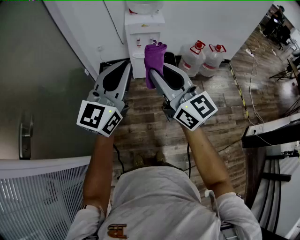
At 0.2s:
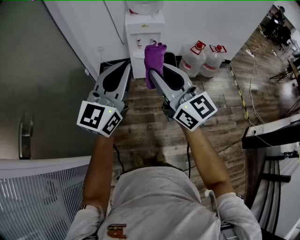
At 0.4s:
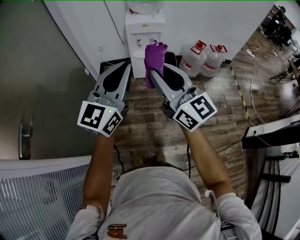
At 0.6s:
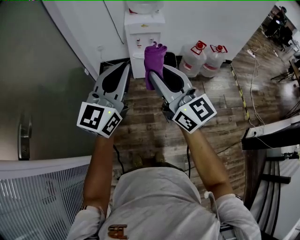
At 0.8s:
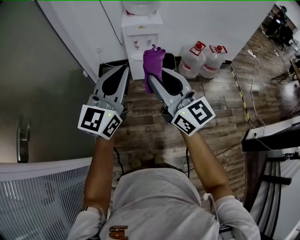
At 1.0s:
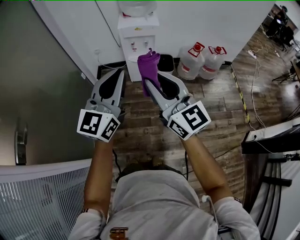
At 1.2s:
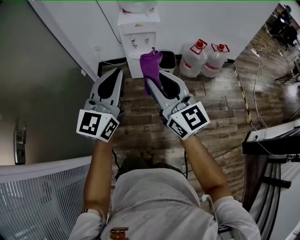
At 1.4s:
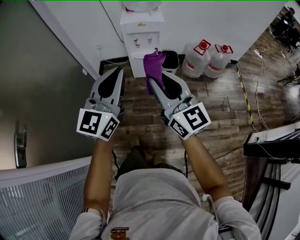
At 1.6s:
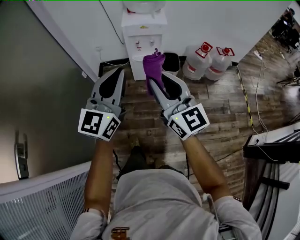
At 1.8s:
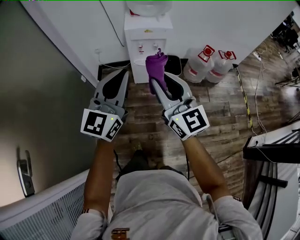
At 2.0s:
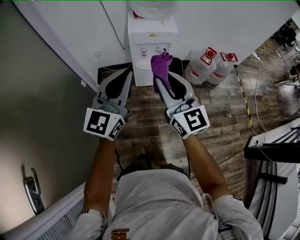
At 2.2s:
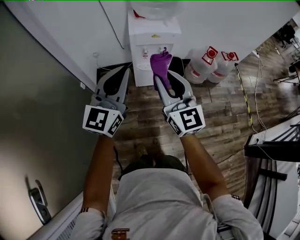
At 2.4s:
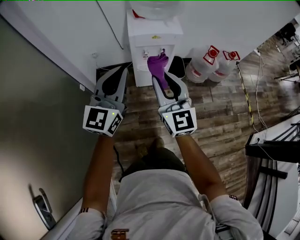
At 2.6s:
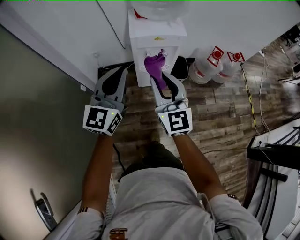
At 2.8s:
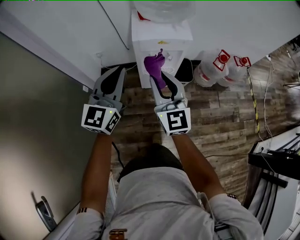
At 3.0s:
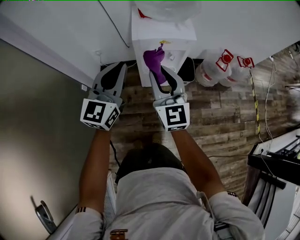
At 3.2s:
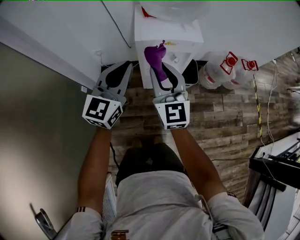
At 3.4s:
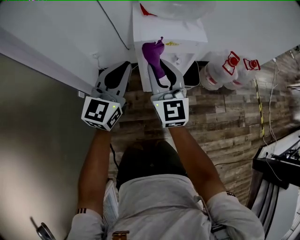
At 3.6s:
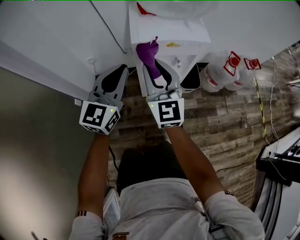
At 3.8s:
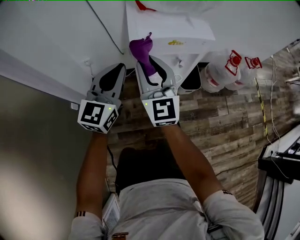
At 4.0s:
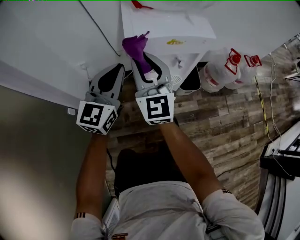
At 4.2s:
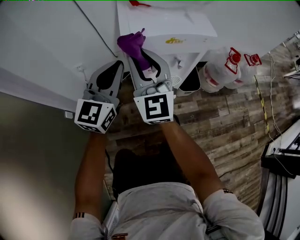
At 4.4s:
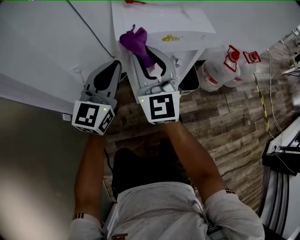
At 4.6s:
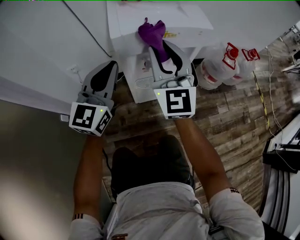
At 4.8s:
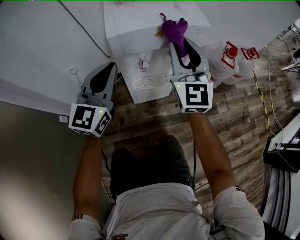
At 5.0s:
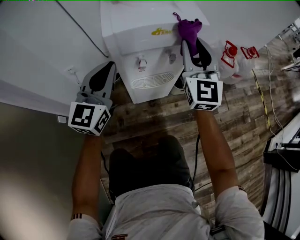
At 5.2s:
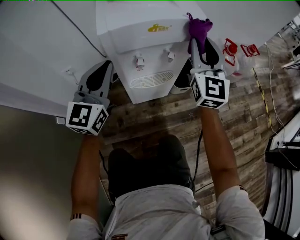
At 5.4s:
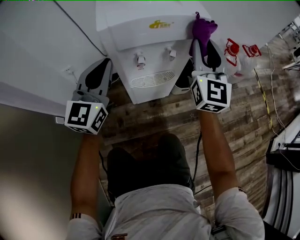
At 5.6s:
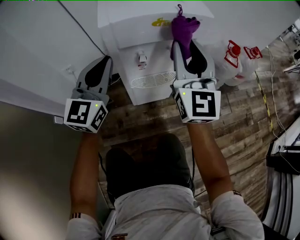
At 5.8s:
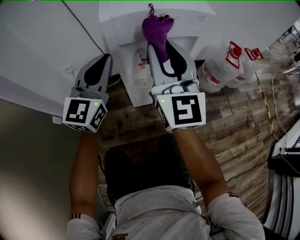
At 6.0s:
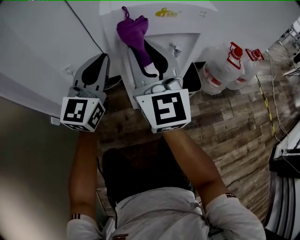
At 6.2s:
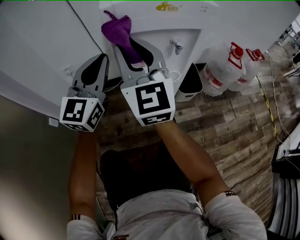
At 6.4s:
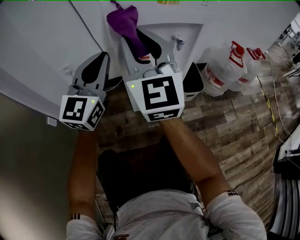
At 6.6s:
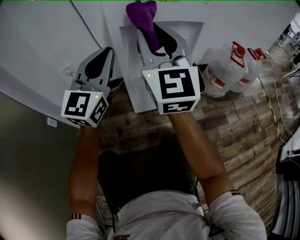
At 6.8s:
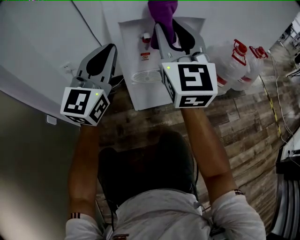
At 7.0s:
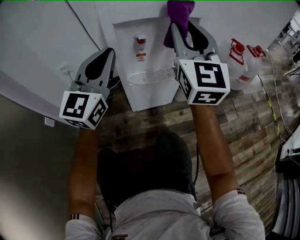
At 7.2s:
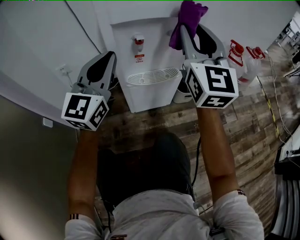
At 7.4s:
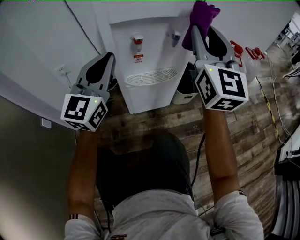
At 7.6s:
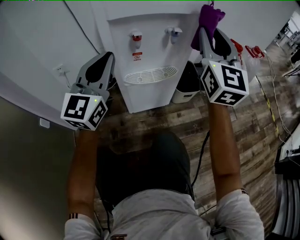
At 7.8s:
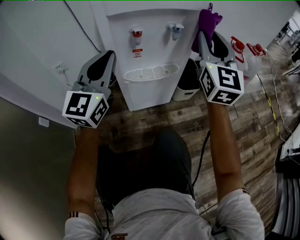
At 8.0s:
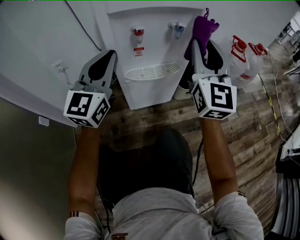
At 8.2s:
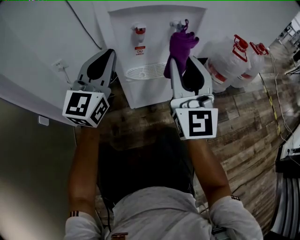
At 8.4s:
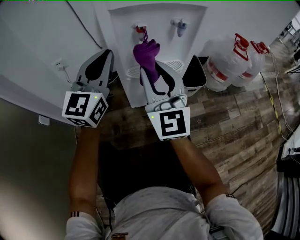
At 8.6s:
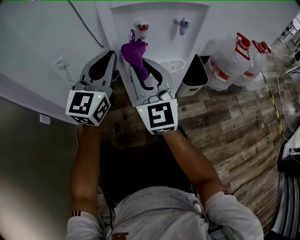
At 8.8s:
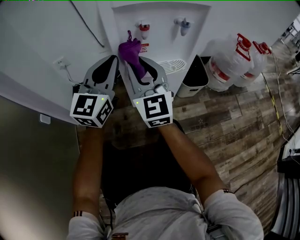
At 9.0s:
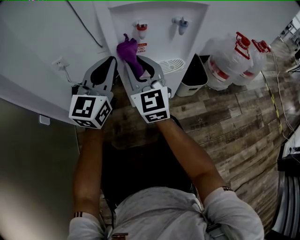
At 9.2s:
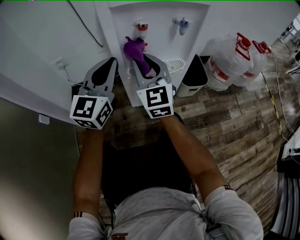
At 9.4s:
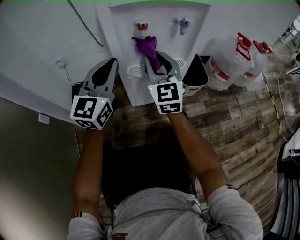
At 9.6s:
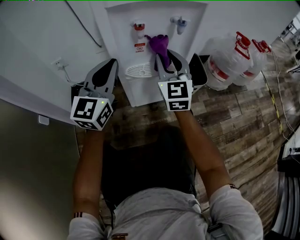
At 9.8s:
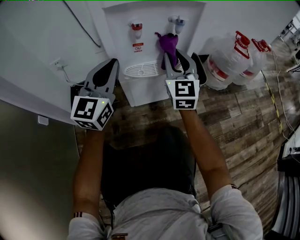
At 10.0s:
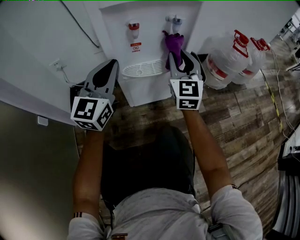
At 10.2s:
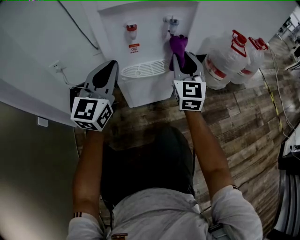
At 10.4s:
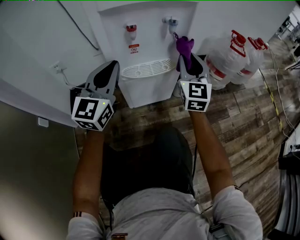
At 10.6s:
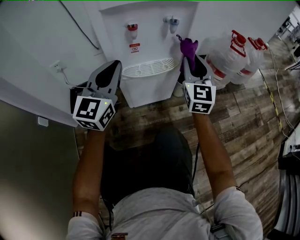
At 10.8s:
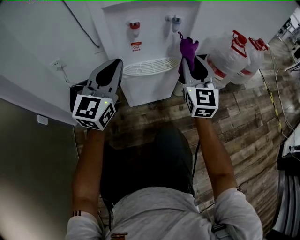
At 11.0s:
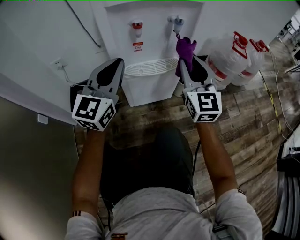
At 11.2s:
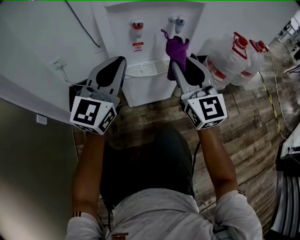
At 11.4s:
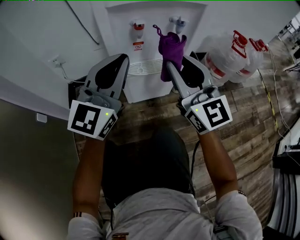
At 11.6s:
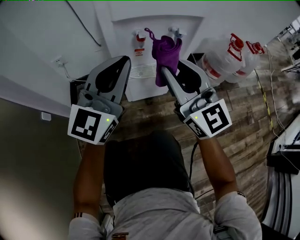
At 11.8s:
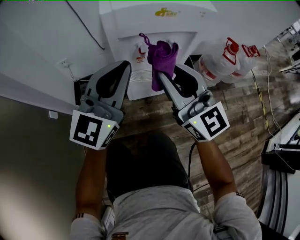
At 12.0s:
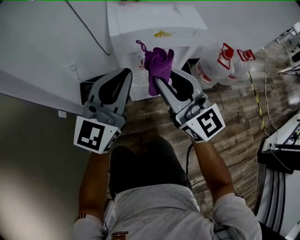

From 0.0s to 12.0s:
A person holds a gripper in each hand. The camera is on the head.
From 0.0s to 1.6s: Both grippers travel together forward and downward, approximately 15 cm.
From 1.6s to 3.0s: The two grippers go some 30 cm forward.
From 3.0s to 4.4s: The left gripper heads downward and forward, covering approximately 25 cm, while the right gripper goes some 20 cm forward and downward.
From 4.4s to 6.0s: The left gripper shifts about 5 cm downward; the right gripper moves some 20 cm to the right and comes back.
From 6.0s to 7.6s: The left gripper goes approximately 5 cm downward; the right gripper is displaced to the right by roughly 20 cm, and changes its angle by some 20 degrees.
From 7.6s to 9.0s: The left gripper travels downward by some 5 cm. Meanwhile the right gripper shifts approximately 30 cm to the left and downward, and turns by about 20 degrees.
From 9.0s to 10.4s: The right gripper goes approximately 20 cm to the right, and rotates roughly 20 degrees.
From 10.4s to 12.0s: The left gripper shifts some 25 cm upward, while the right gripper moves upward, backward and to the left, about 35 cm, and rotates about 40 degrees.

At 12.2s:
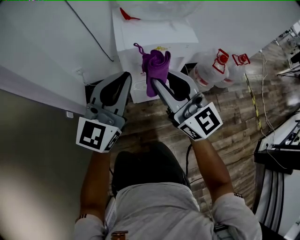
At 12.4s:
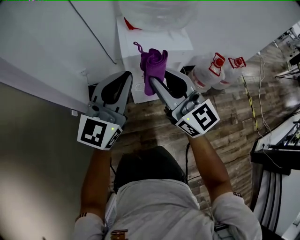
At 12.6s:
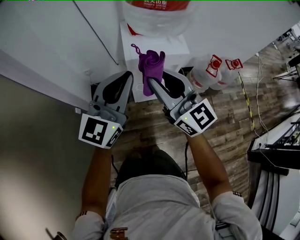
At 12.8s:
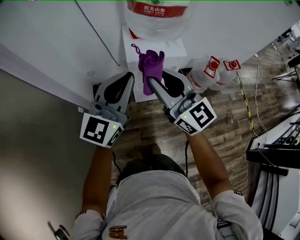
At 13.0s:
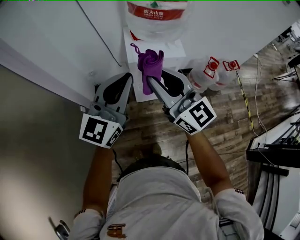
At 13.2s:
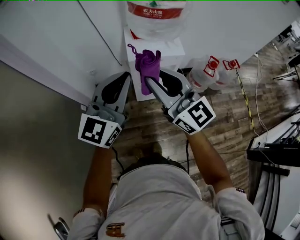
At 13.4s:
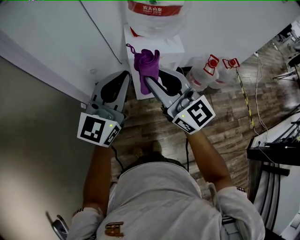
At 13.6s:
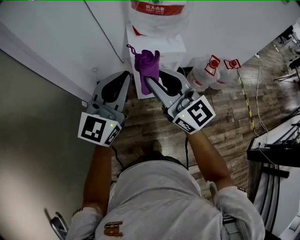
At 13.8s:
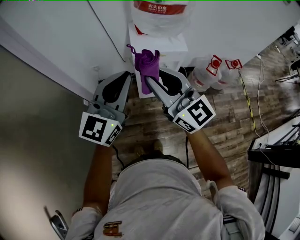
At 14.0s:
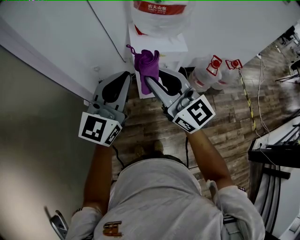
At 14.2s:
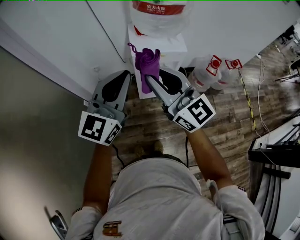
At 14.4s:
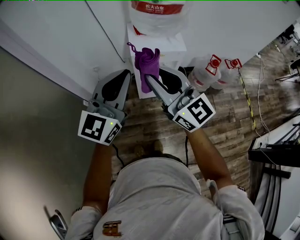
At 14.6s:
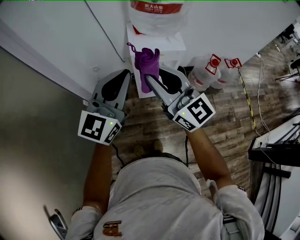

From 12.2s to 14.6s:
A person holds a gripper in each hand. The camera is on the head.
From 12.2s to 13.4s: The two grippers go roughly 20 cm upward and backward.
From 13.4s to 14.6s: Both grippers stay put.

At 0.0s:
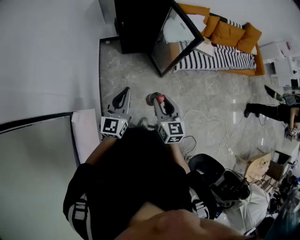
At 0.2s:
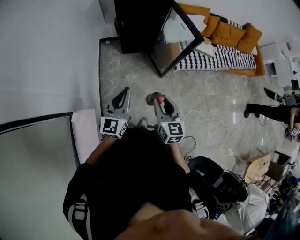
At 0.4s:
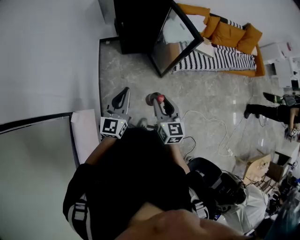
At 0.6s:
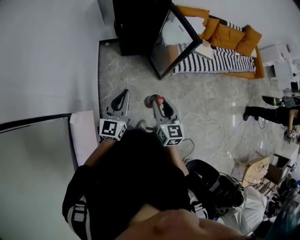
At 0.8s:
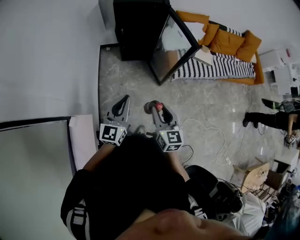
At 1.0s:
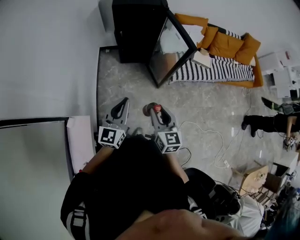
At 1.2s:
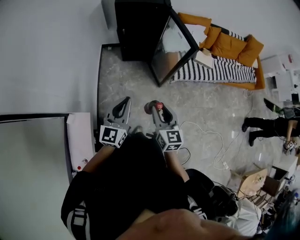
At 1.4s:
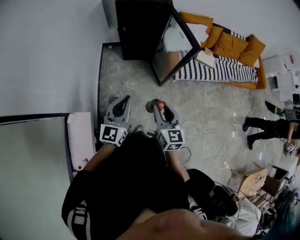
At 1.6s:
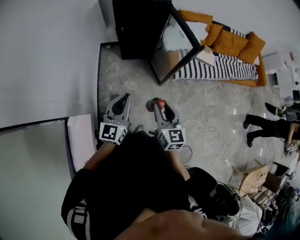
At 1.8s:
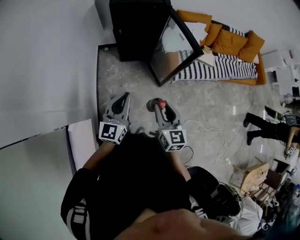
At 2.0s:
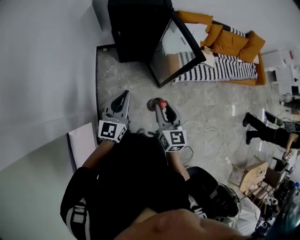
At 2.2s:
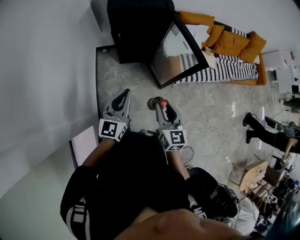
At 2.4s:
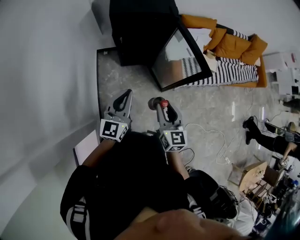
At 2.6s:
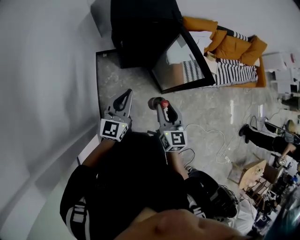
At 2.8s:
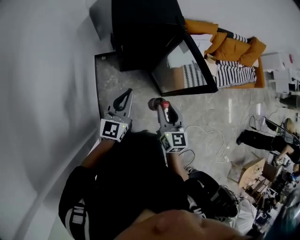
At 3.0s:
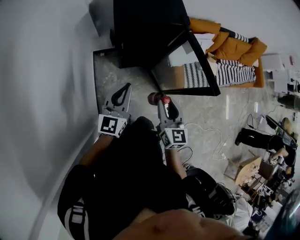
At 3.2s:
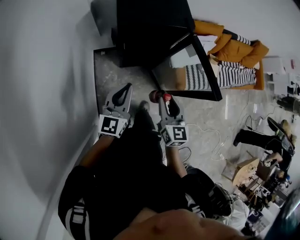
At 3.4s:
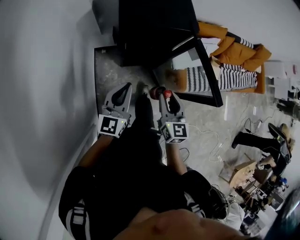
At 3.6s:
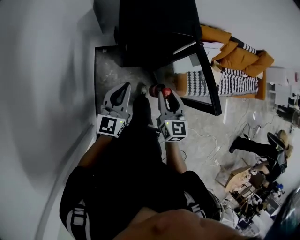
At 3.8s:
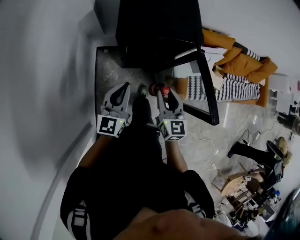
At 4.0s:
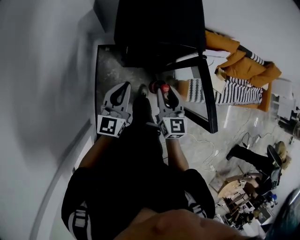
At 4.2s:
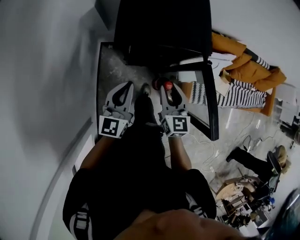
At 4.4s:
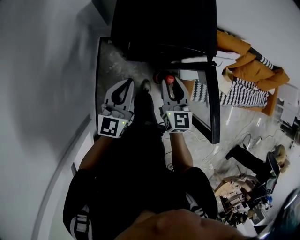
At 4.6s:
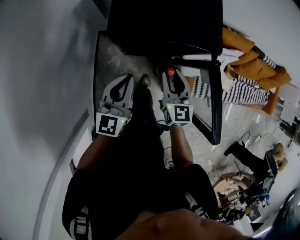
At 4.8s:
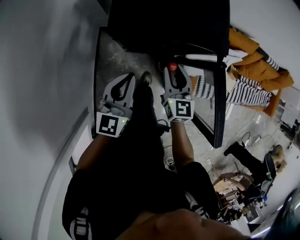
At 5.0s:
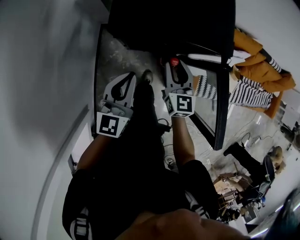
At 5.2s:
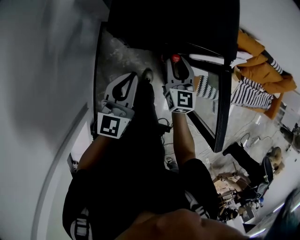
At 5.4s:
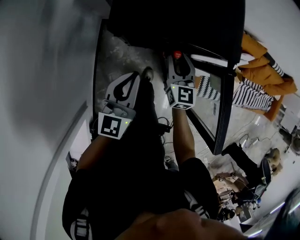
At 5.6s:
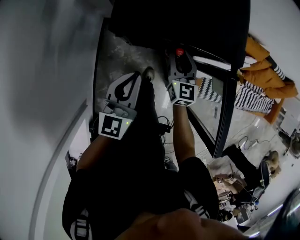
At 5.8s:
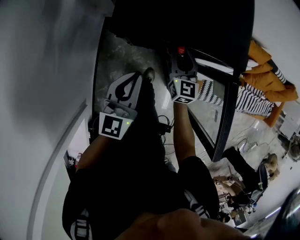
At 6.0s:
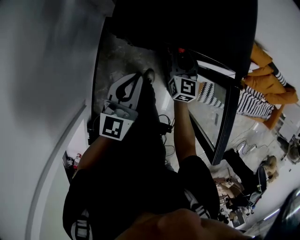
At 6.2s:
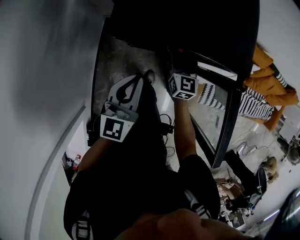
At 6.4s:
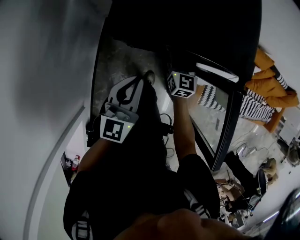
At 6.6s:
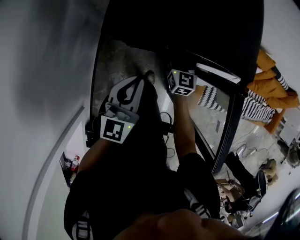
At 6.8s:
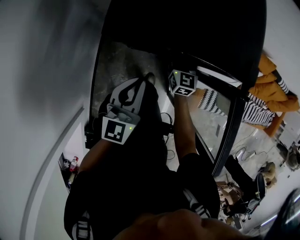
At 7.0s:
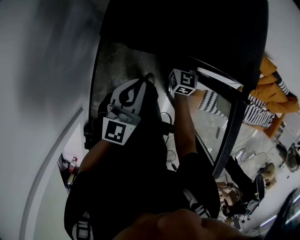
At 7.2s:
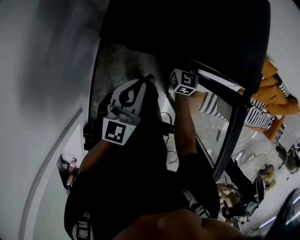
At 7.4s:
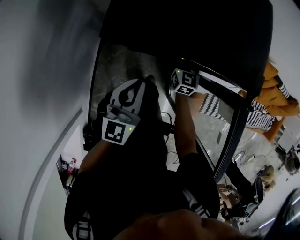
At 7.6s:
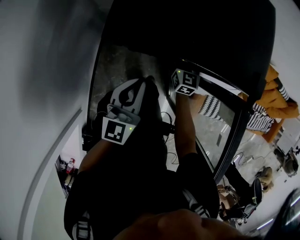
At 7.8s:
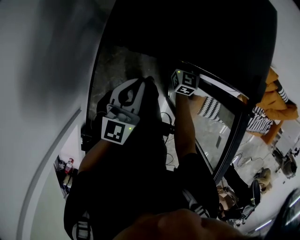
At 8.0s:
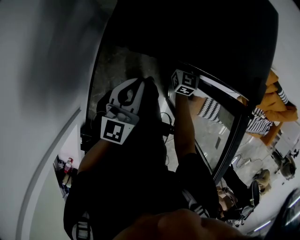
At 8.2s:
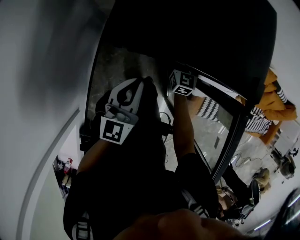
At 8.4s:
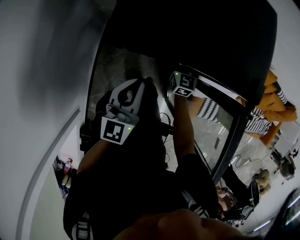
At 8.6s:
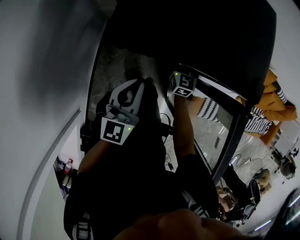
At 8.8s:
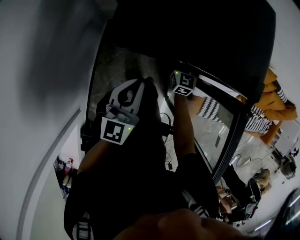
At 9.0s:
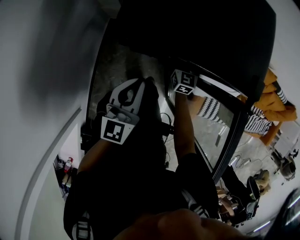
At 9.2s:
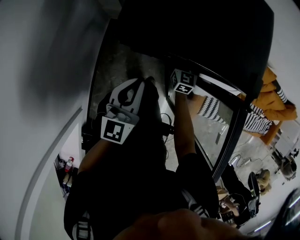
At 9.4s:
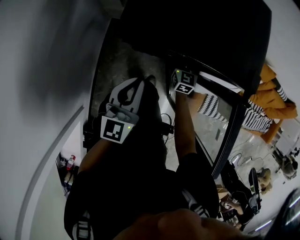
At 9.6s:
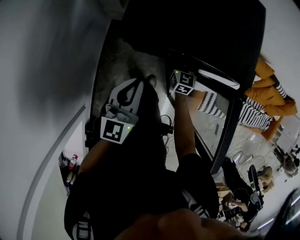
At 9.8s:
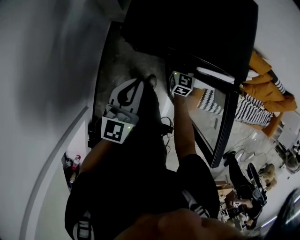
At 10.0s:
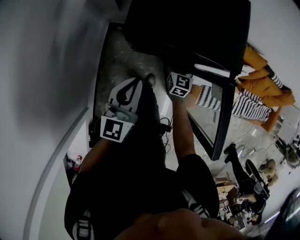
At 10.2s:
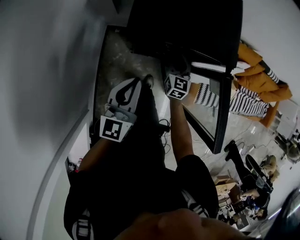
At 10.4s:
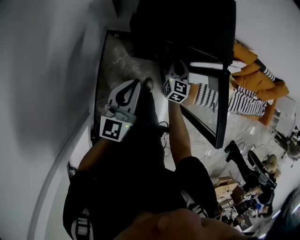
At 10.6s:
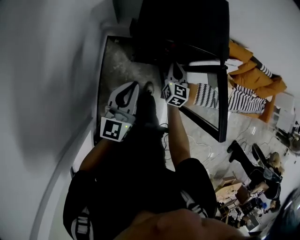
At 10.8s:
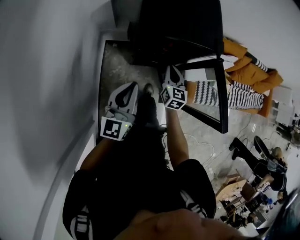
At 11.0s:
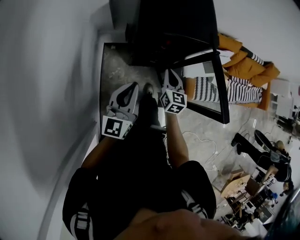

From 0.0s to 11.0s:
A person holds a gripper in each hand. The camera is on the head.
From 0.0s to 1.6s: The left gripper shifts by about 5 cm, while the right gripper is displaced forward by roughly 5 cm.
From 1.6s to 3.2s: The two grippers go about 35 cm forward and to the left.
From 3.2s to 4.8s: The right gripper goes roughly 30 cm forward and downward; the left gripper goes some 20 cm forward and downward.
From 4.8s to 6.2s: The right gripper shifts some 20 cm downward and forward; the left gripper is displaced downward by some 5 cm.
From 6.2s to 7.8s: The two grippers go approximately 5 cm downward.
From 7.8s to 9.4s: The right gripper opens its fingers.
From 9.4s to 11.0s: The right gripper is displaced upward and backward by roughly 30 cm, and closes its fingers. Meanwhile the left gripper heads upward, backward and to the left, covering some 20 cm.
